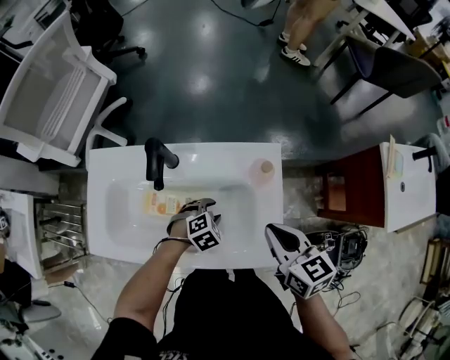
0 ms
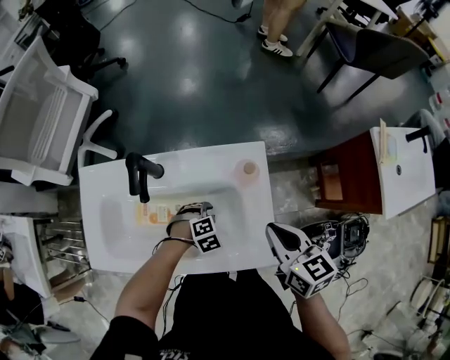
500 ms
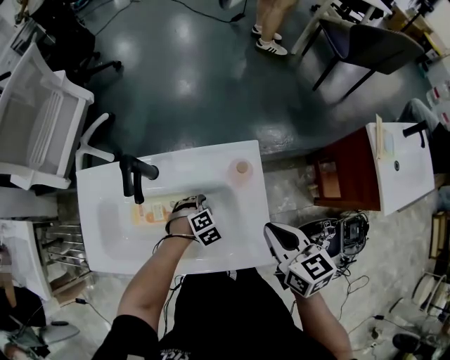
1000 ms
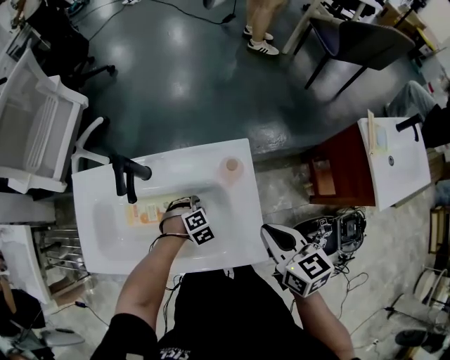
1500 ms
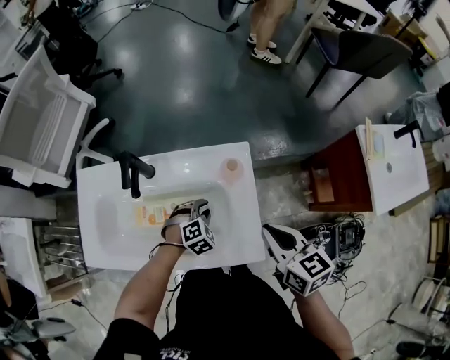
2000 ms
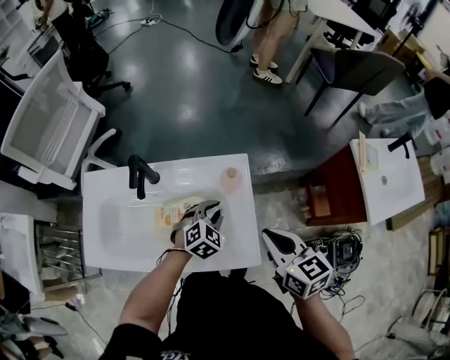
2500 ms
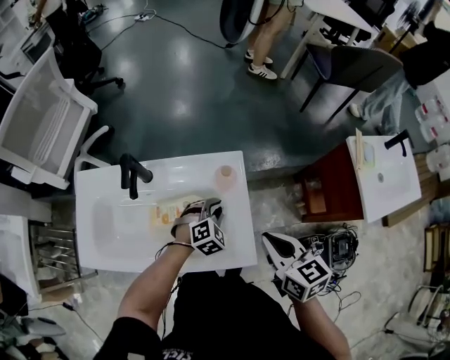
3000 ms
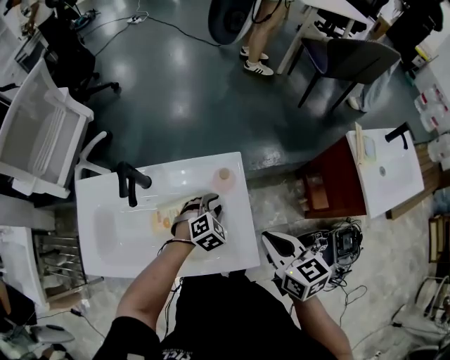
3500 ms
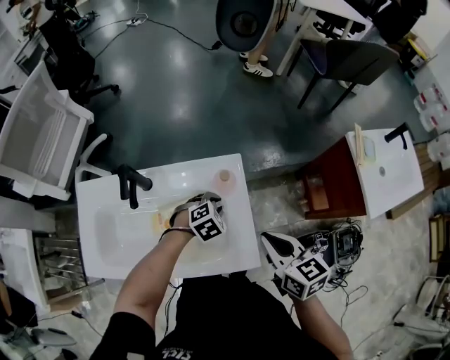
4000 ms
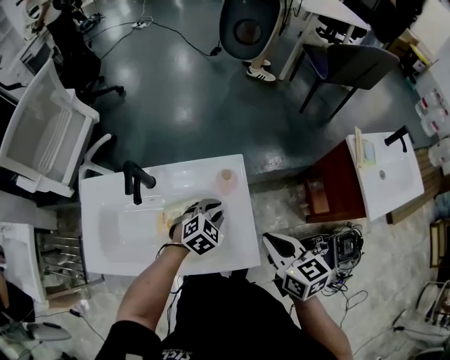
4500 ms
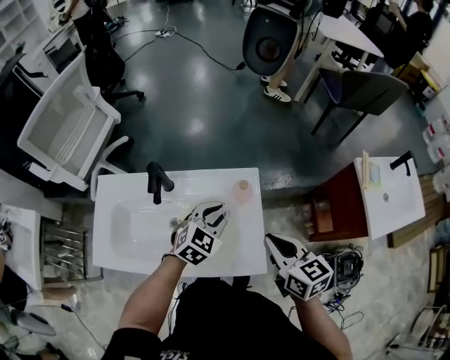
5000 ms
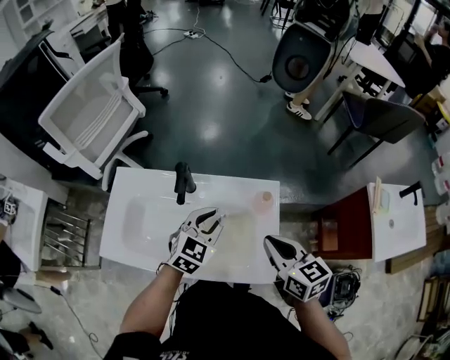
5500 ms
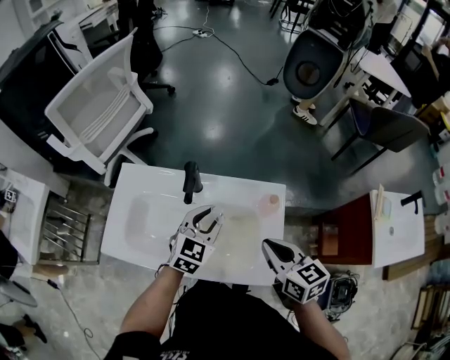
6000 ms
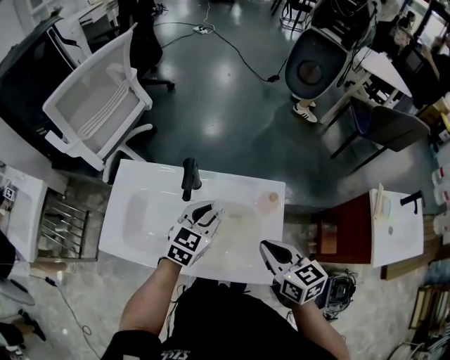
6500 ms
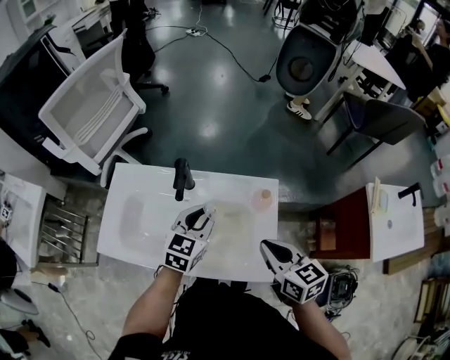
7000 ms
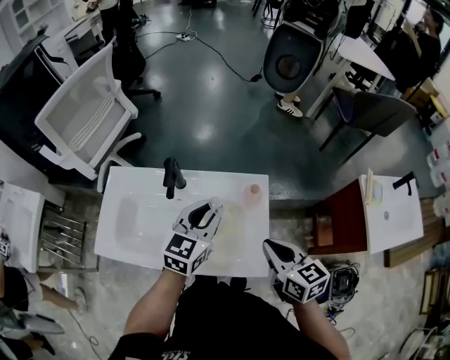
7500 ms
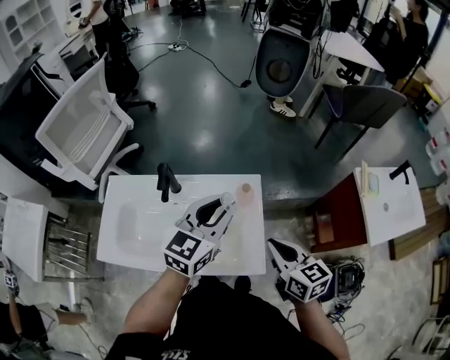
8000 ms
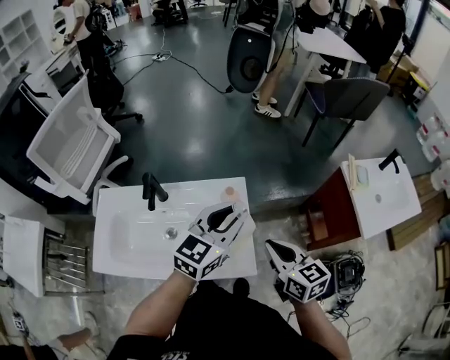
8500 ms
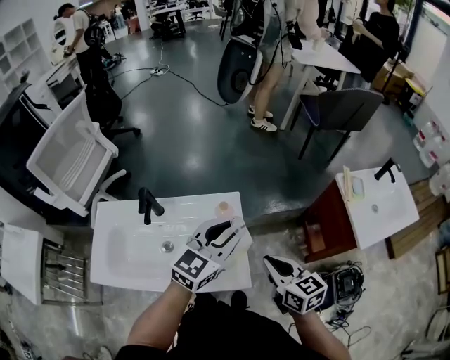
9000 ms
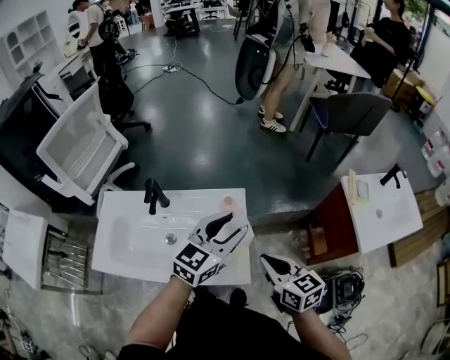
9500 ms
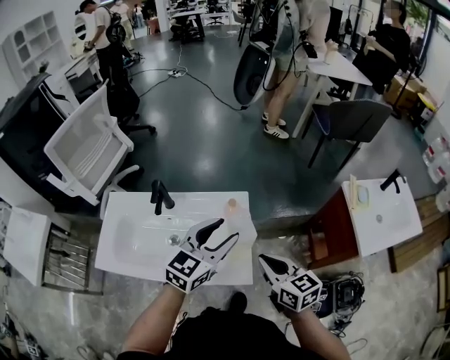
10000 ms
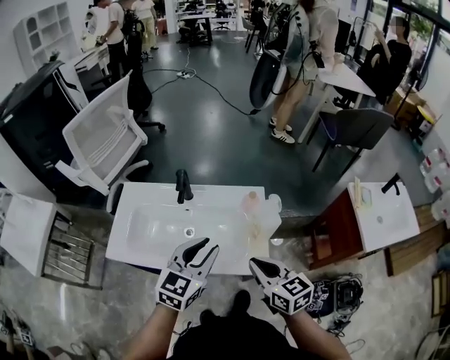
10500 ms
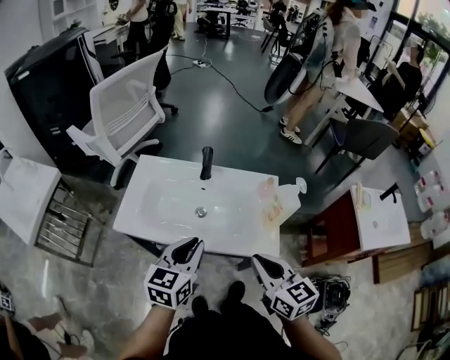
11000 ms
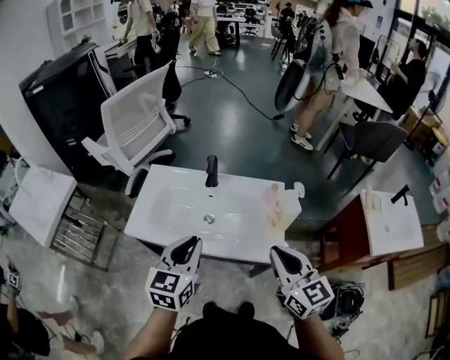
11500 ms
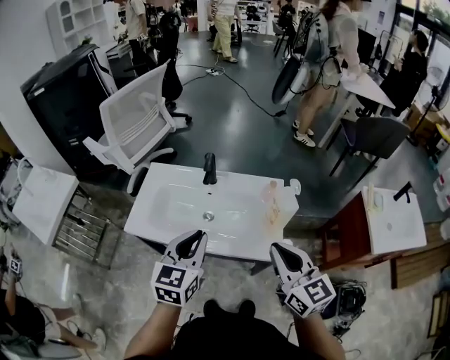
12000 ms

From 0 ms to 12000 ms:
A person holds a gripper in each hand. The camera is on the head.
From 0 ms to 2000 ms: The right gripper moves roughly 5 cm, while the left gripper shifts by some 5 cm.
From 2000 ms to 4000 ms: The left gripper goes about 5 cm to the right.
From 4000 ms to 6000 ms: The right gripper is displaced to the left by about 15 cm, while the left gripper is displaced to the left and upward by about 25 cm, and tilts its fingers some 40 degrees upward.
From 6000 ms to 8000 ms: The left gripper goes about 20 cm upward and to the right; the right gripper goes some 10 cm to the right and backward.
From 8000 ms to 10000 ms: The left gripper shifts about 5 cm to the right, and opens up.
From 10000 ms to 12000 ms: The right gripper moves to the left, backward and upward, approximately 20 cm, and changes its angle by roughly 20 degrees. Meanwhile the left gripper goes roughly 30 cm to the left and backward, swivels about 30 degrees, and closes up.

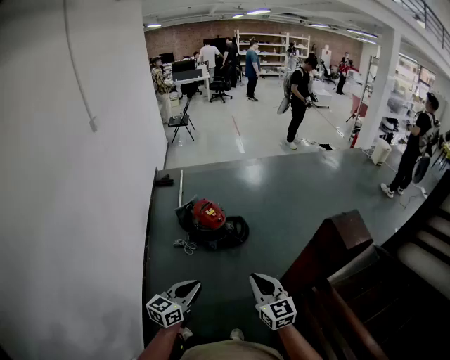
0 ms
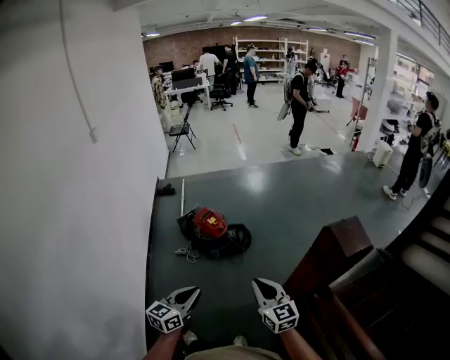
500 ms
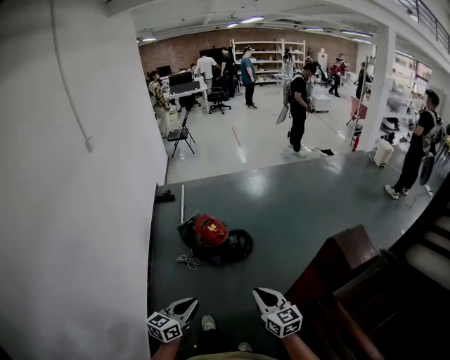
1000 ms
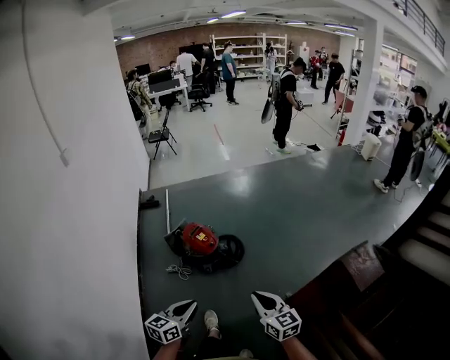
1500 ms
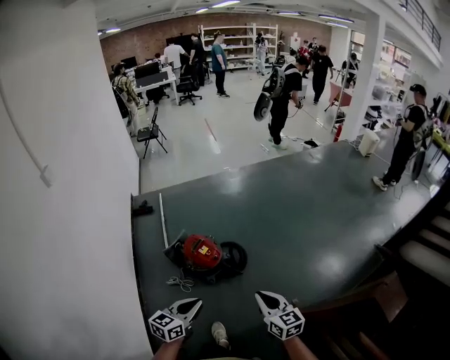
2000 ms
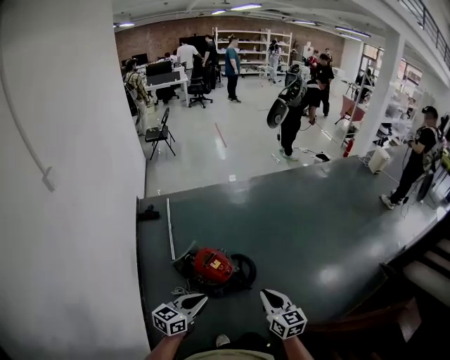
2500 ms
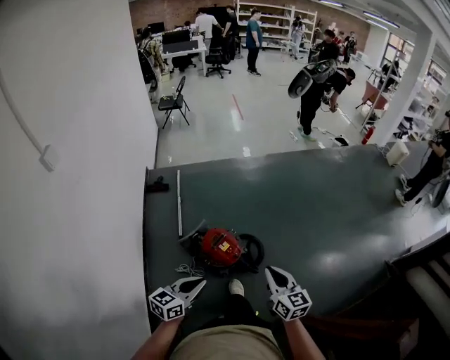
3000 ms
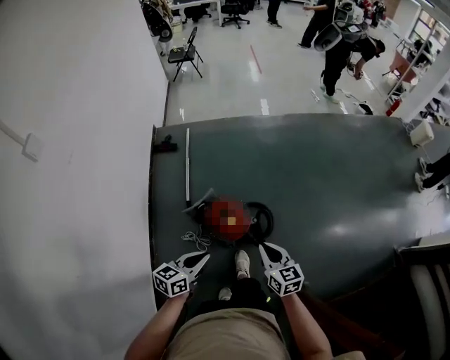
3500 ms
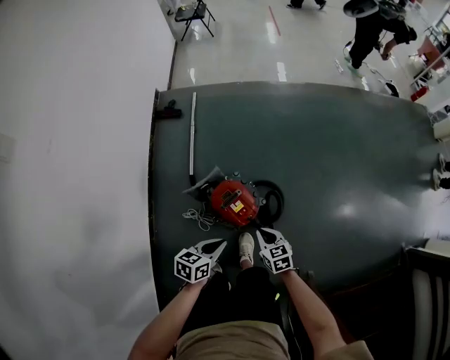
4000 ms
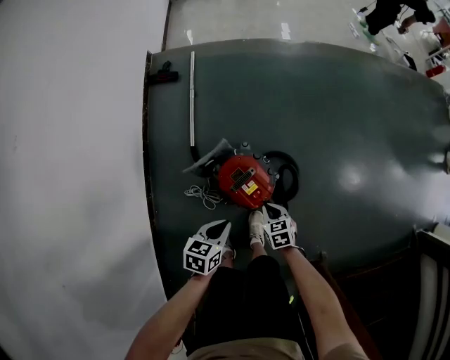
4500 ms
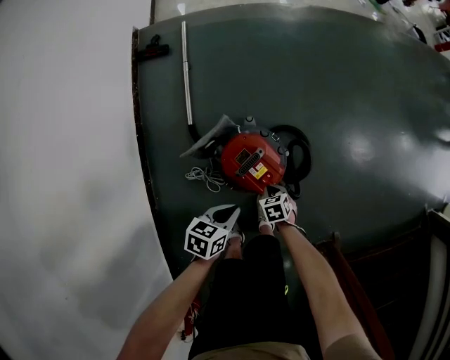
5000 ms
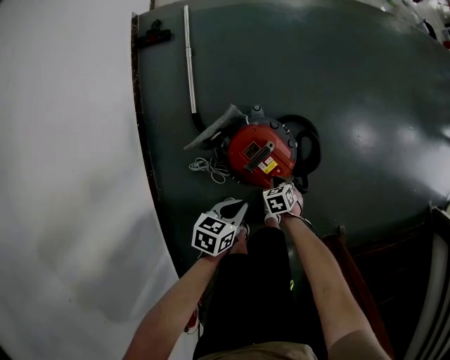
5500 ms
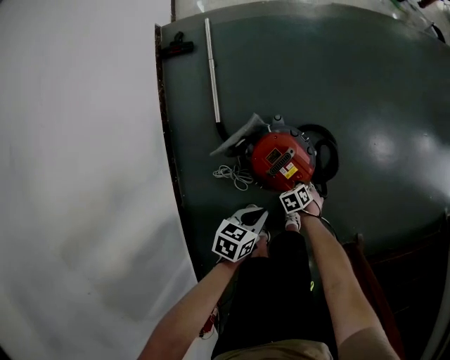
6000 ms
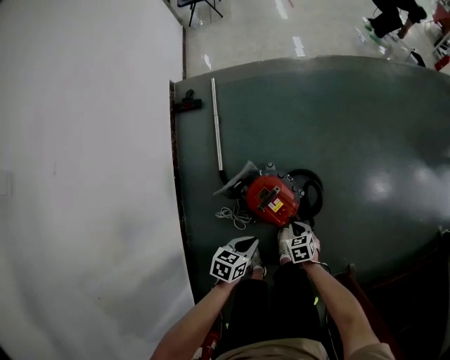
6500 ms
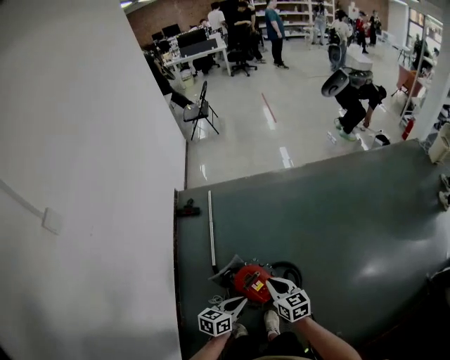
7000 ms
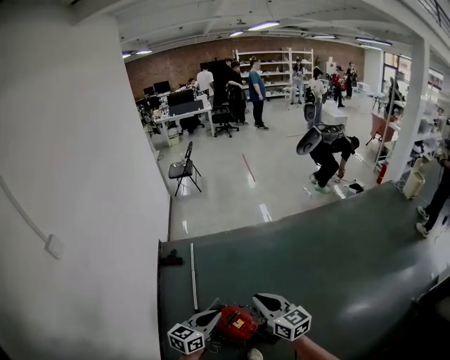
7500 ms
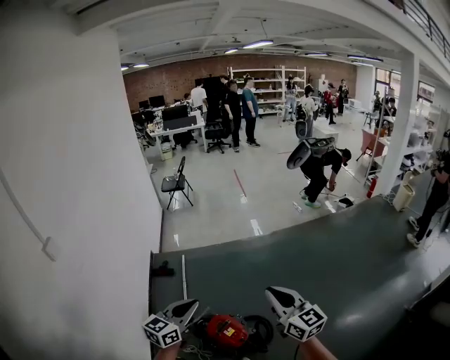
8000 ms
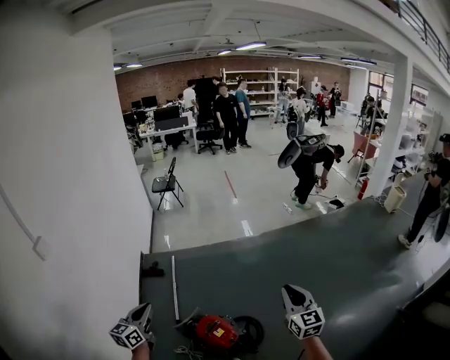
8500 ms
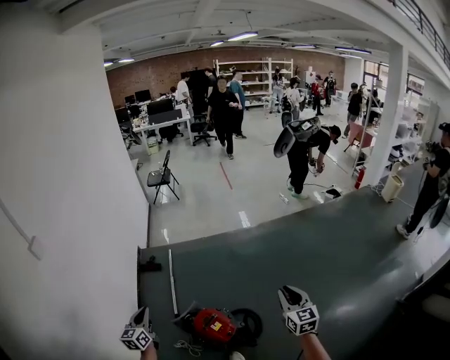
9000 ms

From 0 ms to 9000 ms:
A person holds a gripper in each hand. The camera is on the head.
From 0 ms to 2000 ms: The grippers both shift forward by approximately 30 cm.
From 2000 ms to 4500 ms: The pair of grippers is taken forward and to the left, approximately 50 cm. Both grippers move downward, about 50 cm. The right gripper points its fingers about 40 degrees further downward. Meanwhile the left gripper swivels roughly 40 degrees.
From 4500 ms to 7000 ms: The right gripper goes about 40 cm upward, and tips its fingers upward by some 30 degrees. Meanwhile the left gripper is displaced upward by roughly 25 cm.
From 7000 ms to 9000 ms: The right gripper heads to the right and upward, covering roughly 35 cm, and swivels roughly 30 degrees; the left gripper travels to the left and upward by roughly 25 cm, and rotates about 40 degrees.

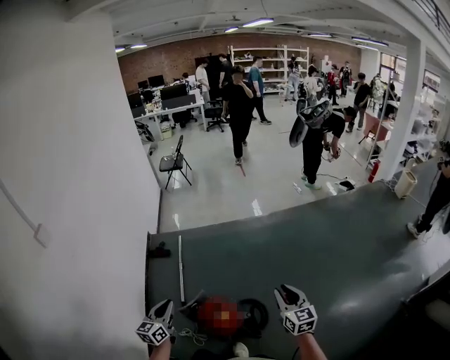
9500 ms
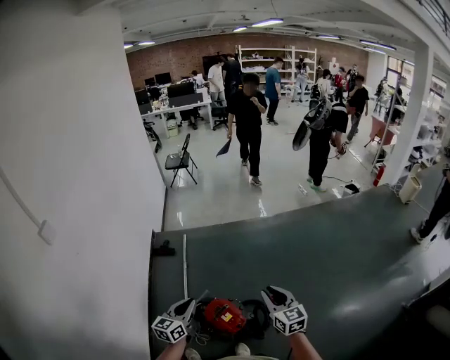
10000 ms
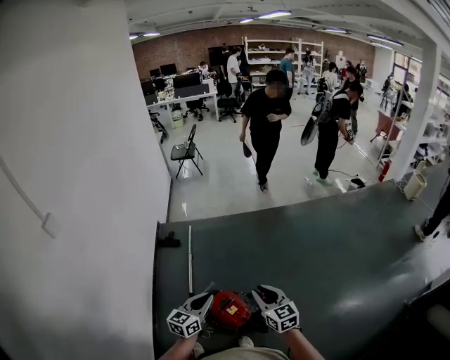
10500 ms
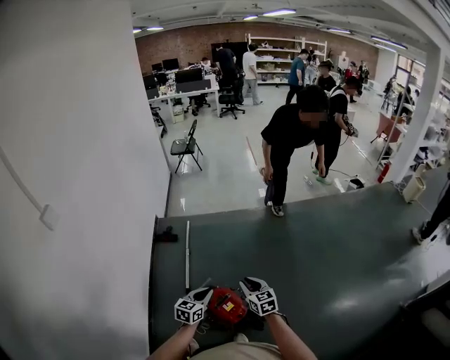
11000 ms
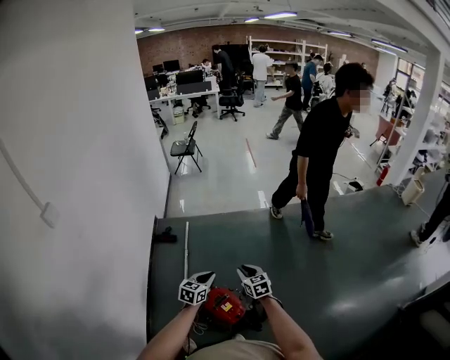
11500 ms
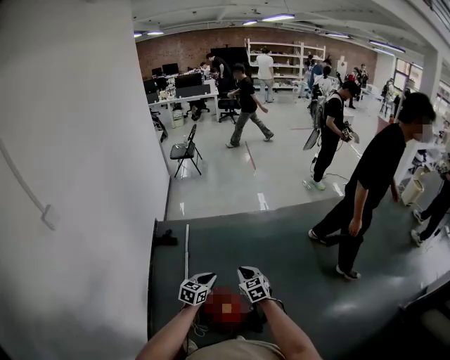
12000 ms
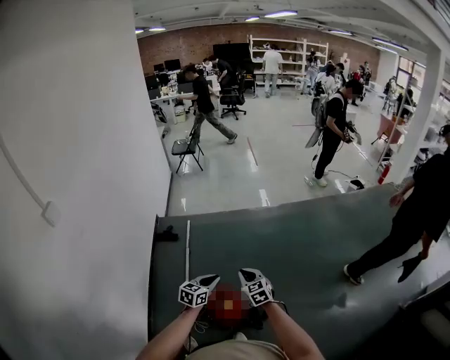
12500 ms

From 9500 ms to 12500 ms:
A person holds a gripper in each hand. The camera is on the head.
From 9500 ms to 11000 ms: The right gripper heads to the left and downward, covering approximately 25 cm. Meanwhile the left gripper heads downward and to the right, covering roughly 15 cm, and rotates some 20 degrees.
From 11000 ms to 12500 ms: The left gripper moves approximately 5 cm.

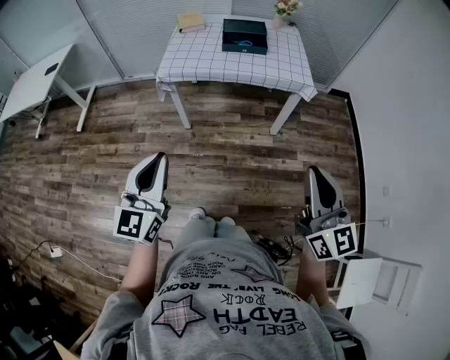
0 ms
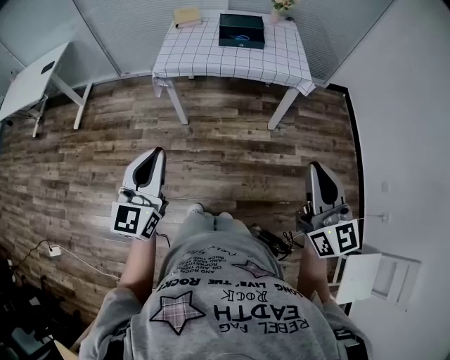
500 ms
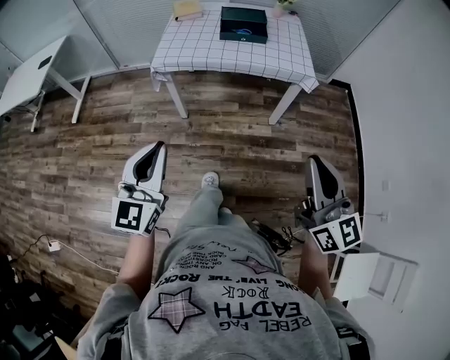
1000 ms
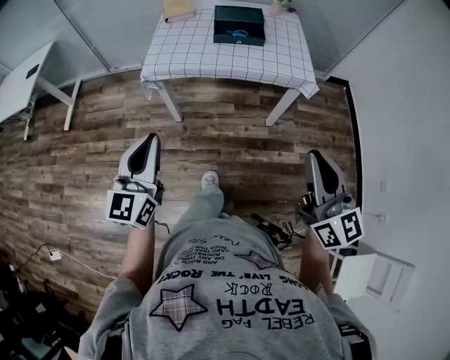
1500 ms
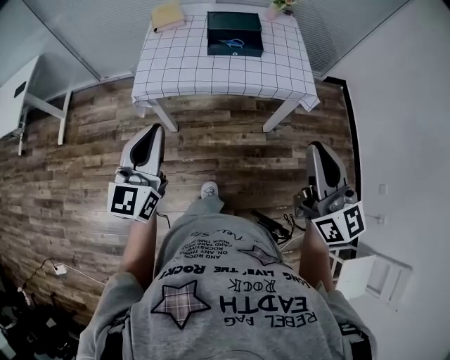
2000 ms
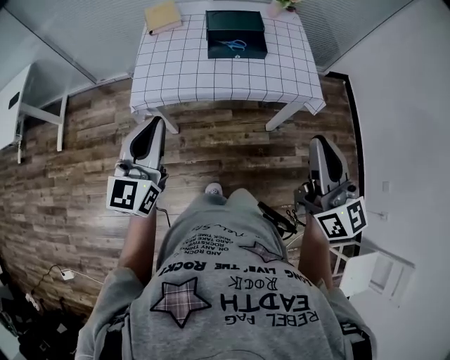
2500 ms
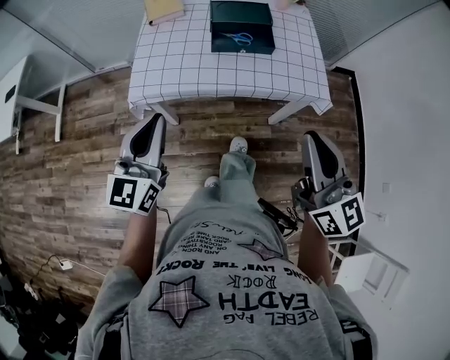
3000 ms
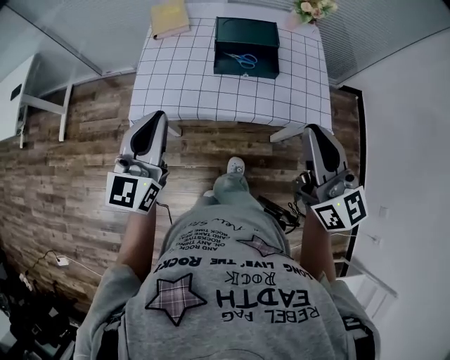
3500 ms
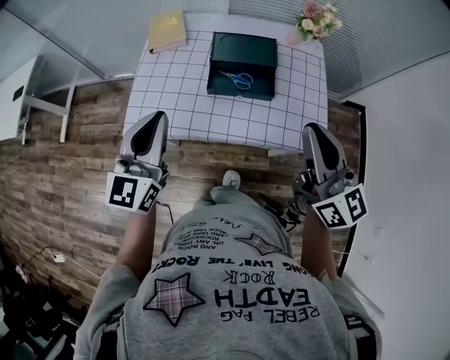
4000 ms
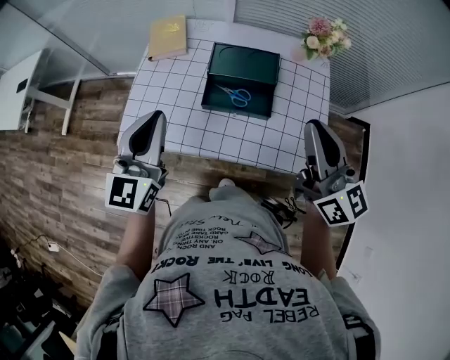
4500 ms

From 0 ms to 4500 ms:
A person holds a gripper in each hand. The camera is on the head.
From 0 ms to 2000 ms: Both grippers move forward, some 25 cm.
From 2000 ms to 4500 ms: Both grippers travel together forward, roughly 35 cm.
